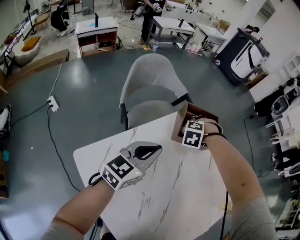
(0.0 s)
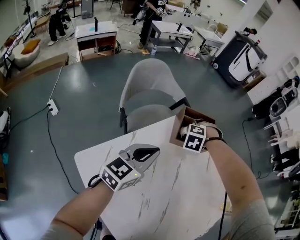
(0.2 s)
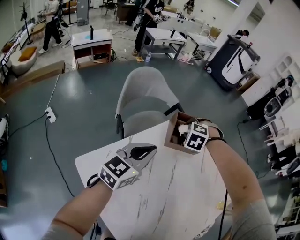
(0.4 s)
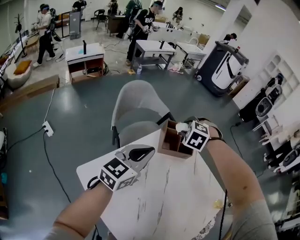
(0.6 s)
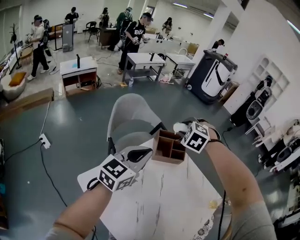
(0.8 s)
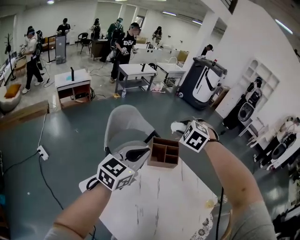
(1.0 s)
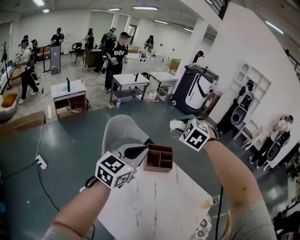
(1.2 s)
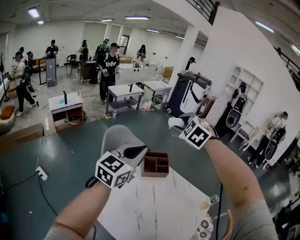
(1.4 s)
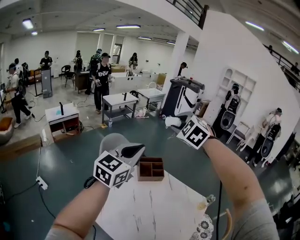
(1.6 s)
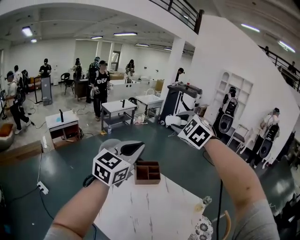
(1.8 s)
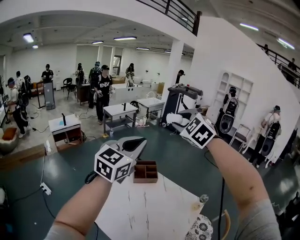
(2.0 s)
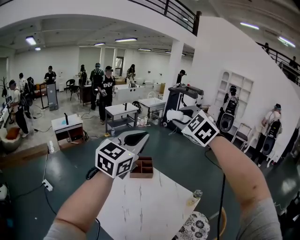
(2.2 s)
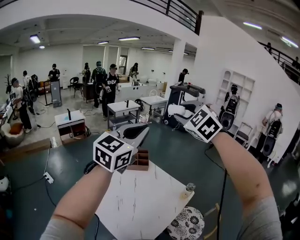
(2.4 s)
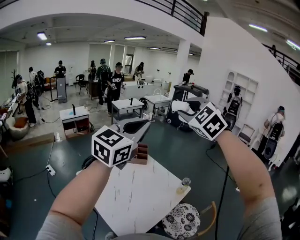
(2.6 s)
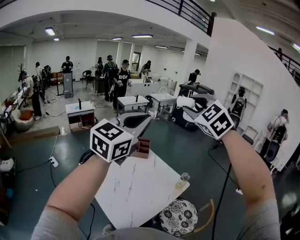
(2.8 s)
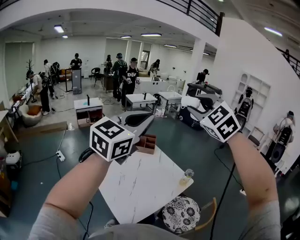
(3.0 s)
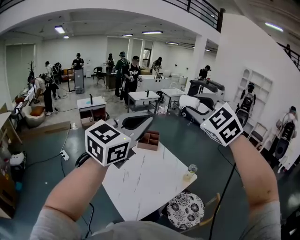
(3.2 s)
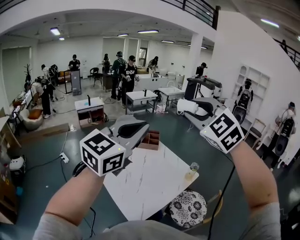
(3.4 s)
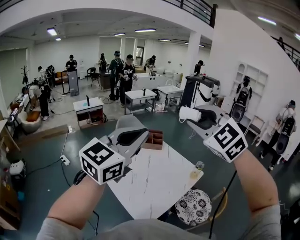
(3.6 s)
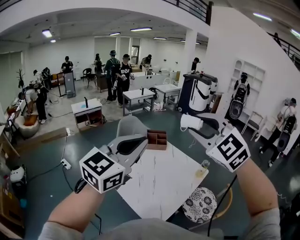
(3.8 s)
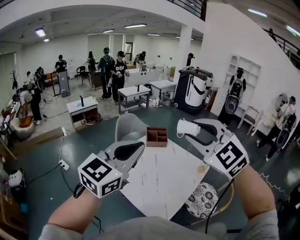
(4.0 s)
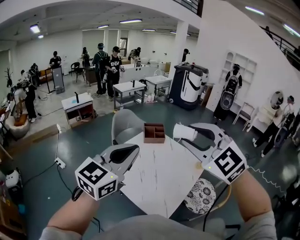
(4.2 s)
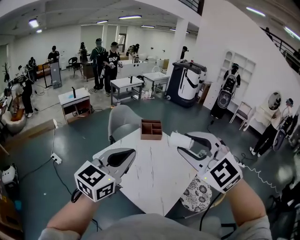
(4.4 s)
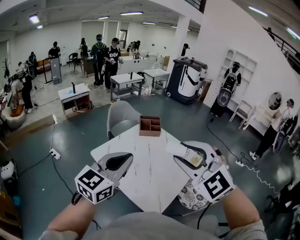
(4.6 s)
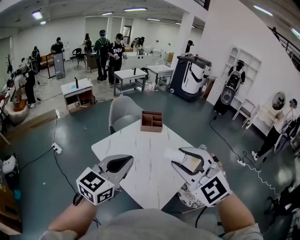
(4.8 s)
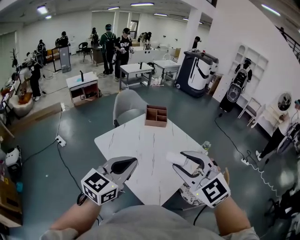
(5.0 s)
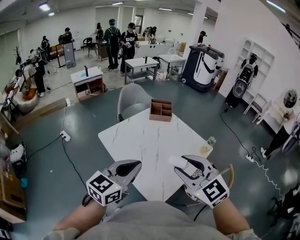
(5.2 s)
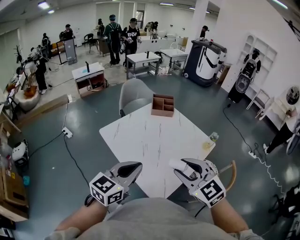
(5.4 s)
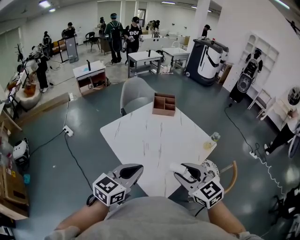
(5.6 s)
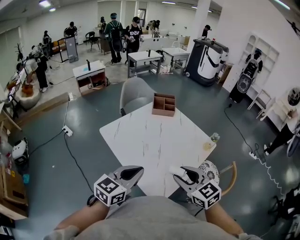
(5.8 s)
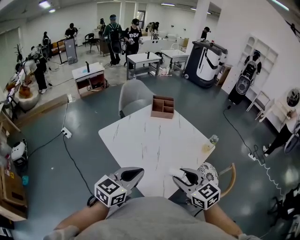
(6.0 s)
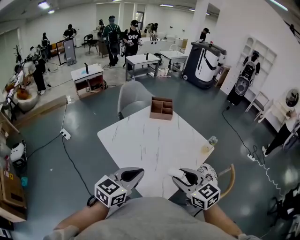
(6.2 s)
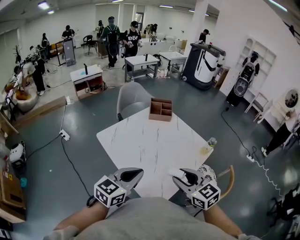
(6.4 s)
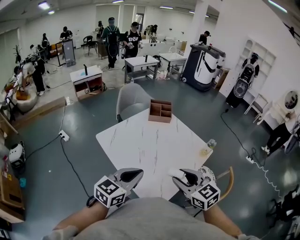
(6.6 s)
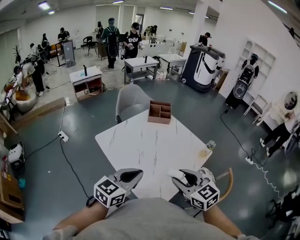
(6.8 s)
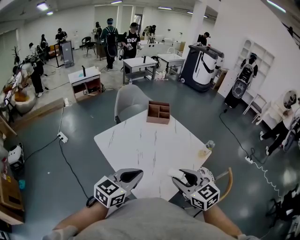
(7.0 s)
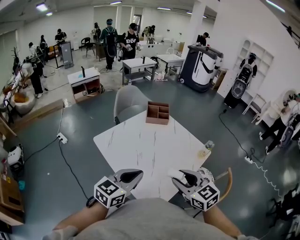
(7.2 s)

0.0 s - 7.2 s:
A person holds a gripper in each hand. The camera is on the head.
0.0 s - 1.4 s: The right gripper goes about 50 cm upward, and tips its fingers upward by some 40 degrees. The left gripper heads upward, covering some 30 cm, and changes its angle by about 20 degrees.
1.4 s - 2.8 s: The left gripper goes about 40 cm to the right, backward and upward. Meanwhile the right gripper heads backward, to the right and upward, covering roughly 40 cm, and swivels approximately 20 degrees.
2.8 s - 4.4 s: The left gripper heads to the left, downward and backward, covering approximately 25 cm, while the right gripper shifts roughly 30 cm backward, to the left and downward.
4.4 s - 5.8 s: The two grippers go about 25 cm downward. The right gripper swivels roughly 40 degrees.
5.8 s - 7.2 s: The grippers make only small movements.

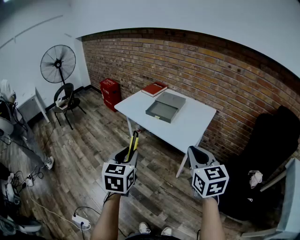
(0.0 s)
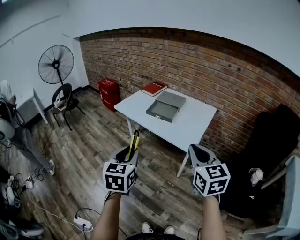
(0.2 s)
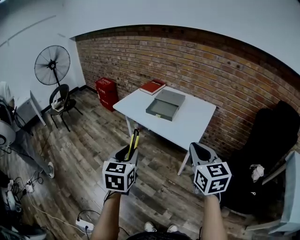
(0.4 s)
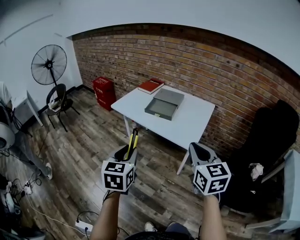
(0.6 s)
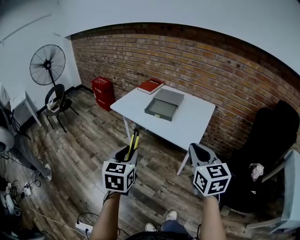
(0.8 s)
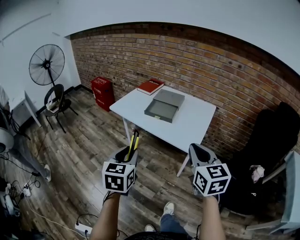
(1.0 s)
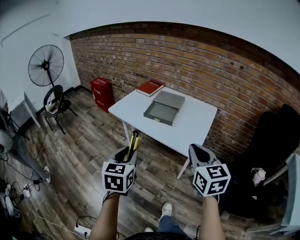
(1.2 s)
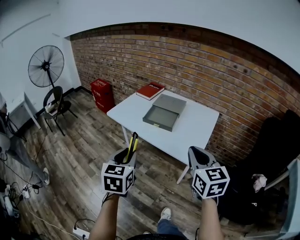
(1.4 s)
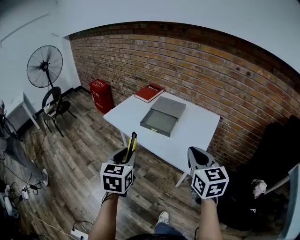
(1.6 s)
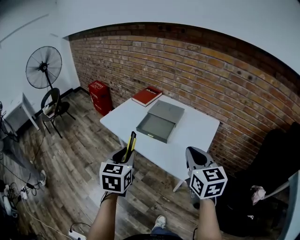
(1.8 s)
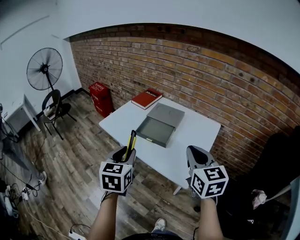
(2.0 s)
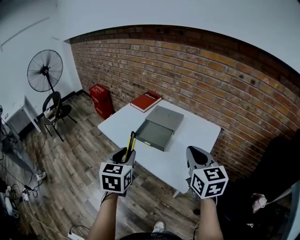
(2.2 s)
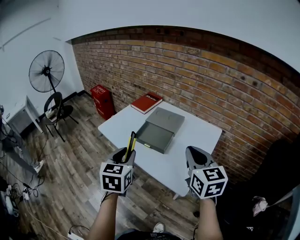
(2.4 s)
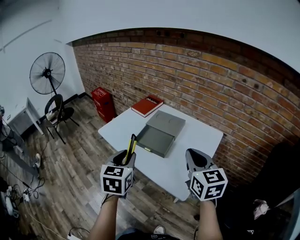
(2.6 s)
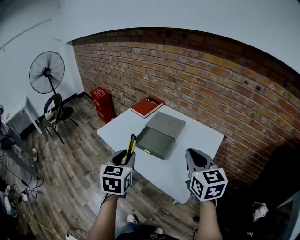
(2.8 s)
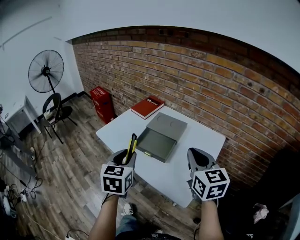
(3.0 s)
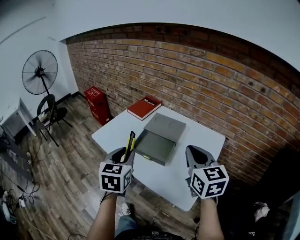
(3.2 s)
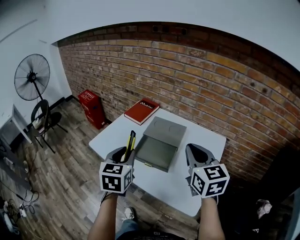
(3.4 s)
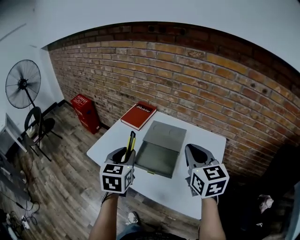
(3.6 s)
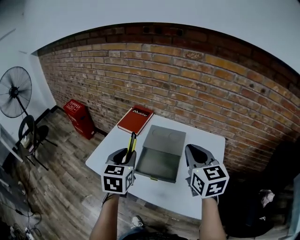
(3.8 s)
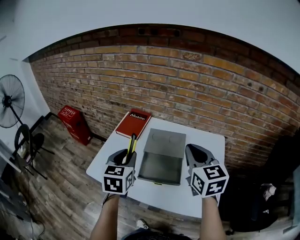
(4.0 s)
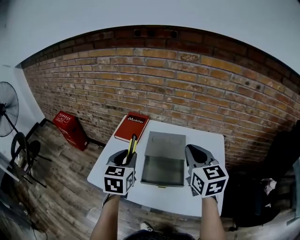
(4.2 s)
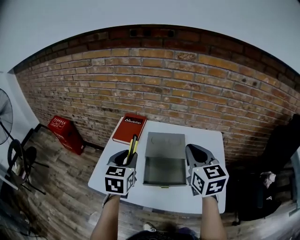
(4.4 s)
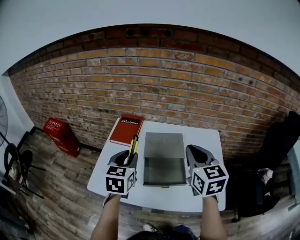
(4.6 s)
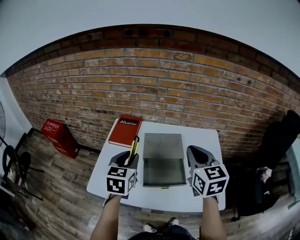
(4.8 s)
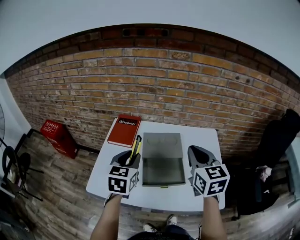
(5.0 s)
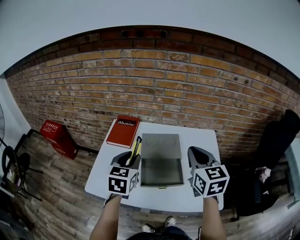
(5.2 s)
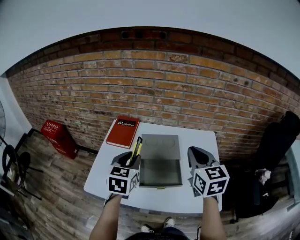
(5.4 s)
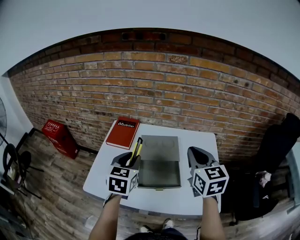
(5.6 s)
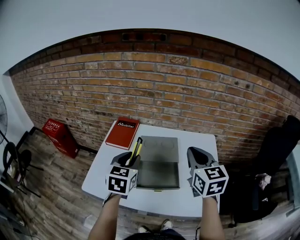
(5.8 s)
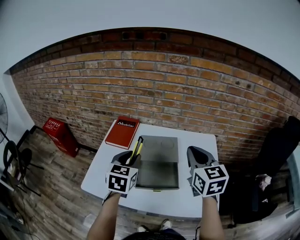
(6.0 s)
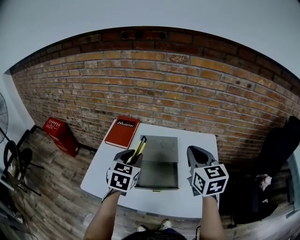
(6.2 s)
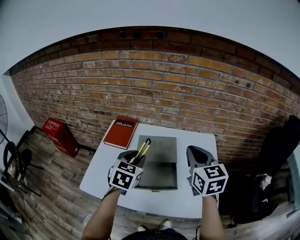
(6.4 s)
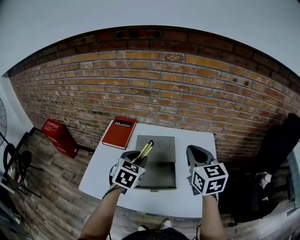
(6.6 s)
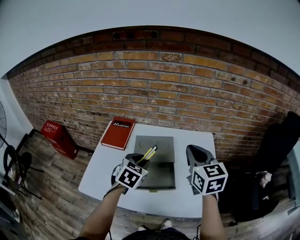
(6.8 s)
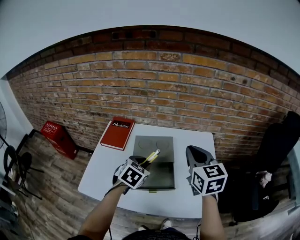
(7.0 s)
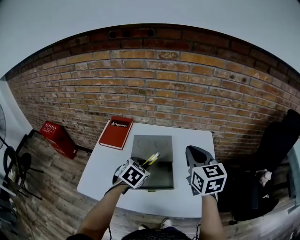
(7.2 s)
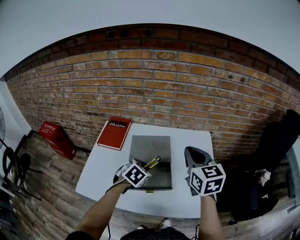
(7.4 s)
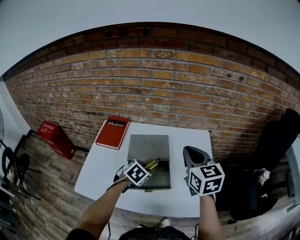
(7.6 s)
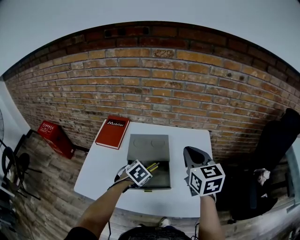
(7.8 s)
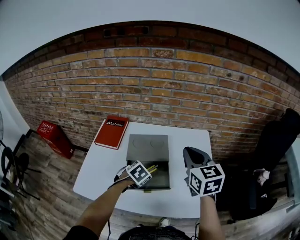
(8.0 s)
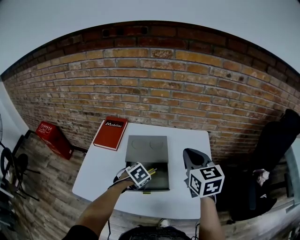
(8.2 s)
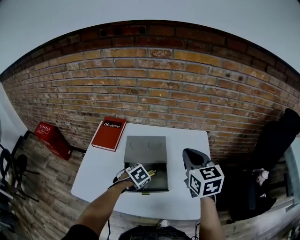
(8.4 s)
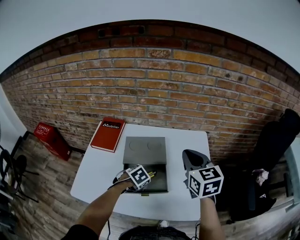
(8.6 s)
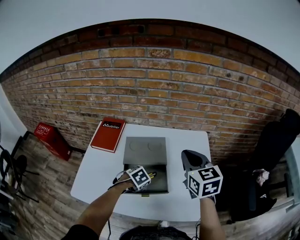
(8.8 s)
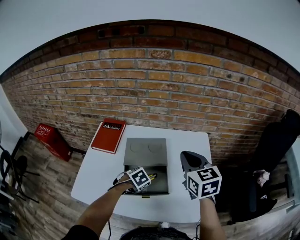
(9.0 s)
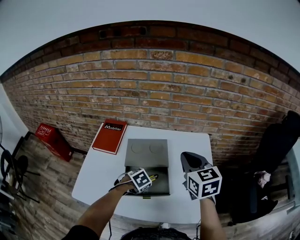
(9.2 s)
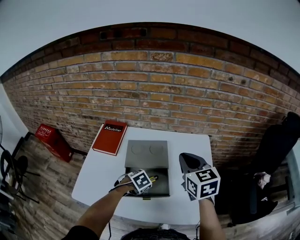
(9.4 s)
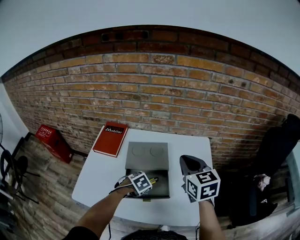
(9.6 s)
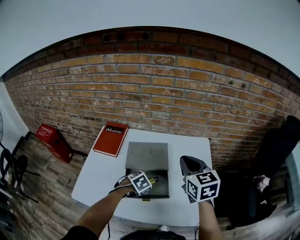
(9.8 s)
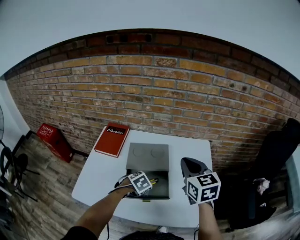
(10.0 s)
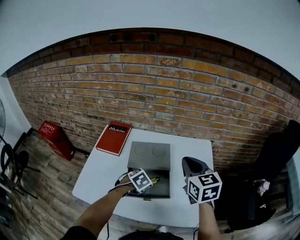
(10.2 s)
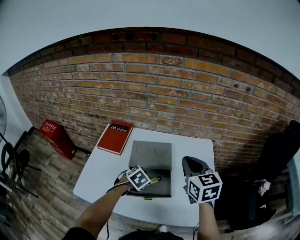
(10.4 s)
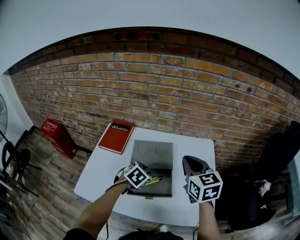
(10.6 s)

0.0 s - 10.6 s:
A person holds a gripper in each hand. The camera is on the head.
0.0 s - 1.6 s: Both grippers travel together forward, roughly 20 cm.
1.6 s - 3.0 s: Both grippers travel together forward, about 15 cm.
3.0 s - 4.6 s: The left gripper moves about 30 cm, and swivels approximately 30 degrees; the right gripper ends up about 20 cm from where it was, and turns by about 30 degrees.
4.6 s - 6.0 s: The left gripper is displaced to the right by some 5 cm.
6.0 s - 7.6 s: The left gripper moves downward and to the right, approximately 20 cm, and tips its fingers downward by some 30 degrees.
7.6 s - 9.0 s: The left gripper goes roughly 10 cm downward.
9.0 s - 10.6 s: The left gripper travels upward by about 10 cm, and rotates about 20 degrees.

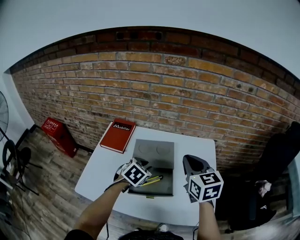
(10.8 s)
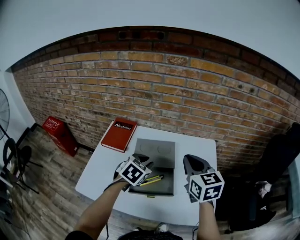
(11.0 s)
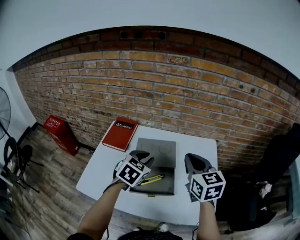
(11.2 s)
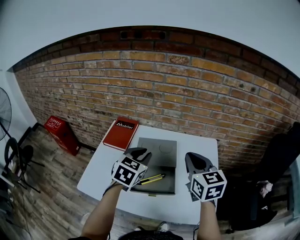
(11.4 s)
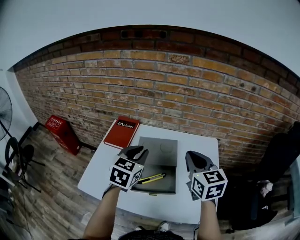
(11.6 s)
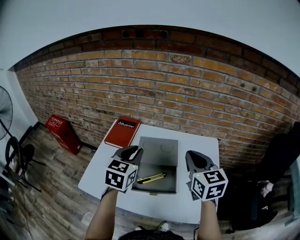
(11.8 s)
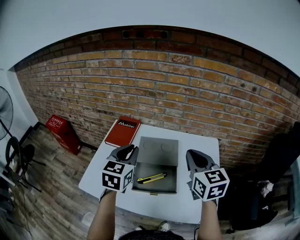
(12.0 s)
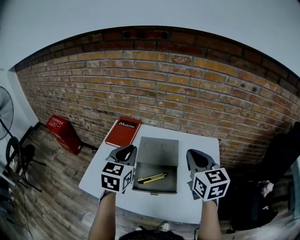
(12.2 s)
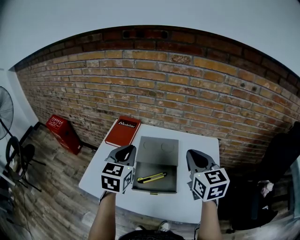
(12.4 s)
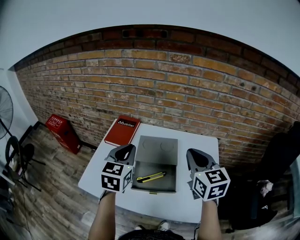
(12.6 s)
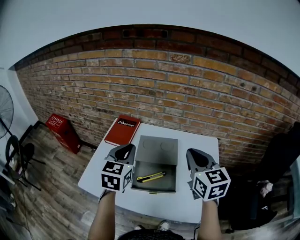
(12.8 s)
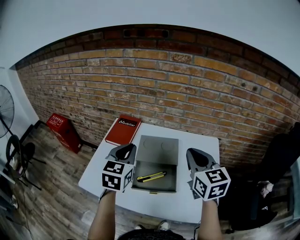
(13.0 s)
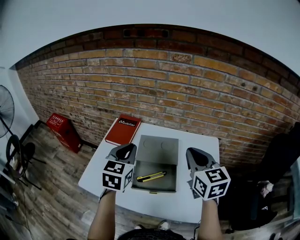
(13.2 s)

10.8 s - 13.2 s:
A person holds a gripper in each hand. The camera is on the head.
10.8 s - 12.0 s: The left gripper shifts some 15 cm upward and to the left, and tips its fingers upward by roughly 30 degrees.
12.0 s - 13.2 s: The two grippers keep their place.

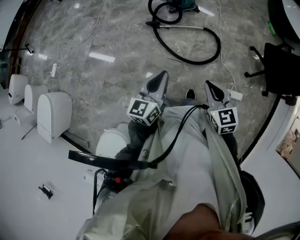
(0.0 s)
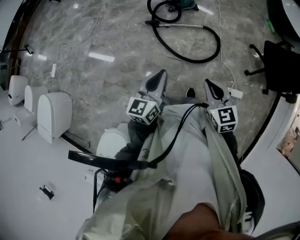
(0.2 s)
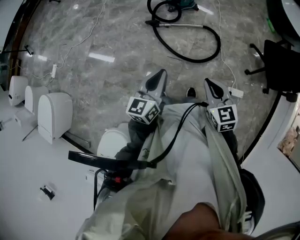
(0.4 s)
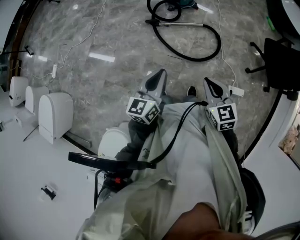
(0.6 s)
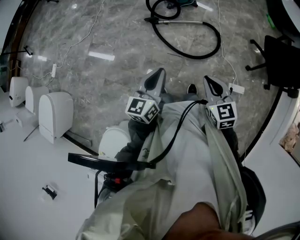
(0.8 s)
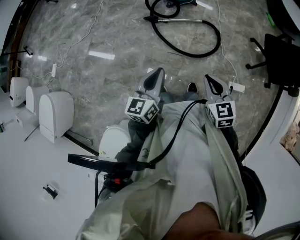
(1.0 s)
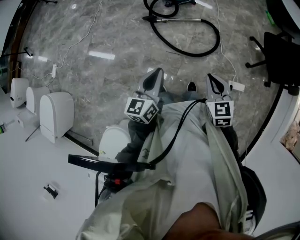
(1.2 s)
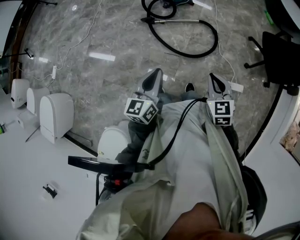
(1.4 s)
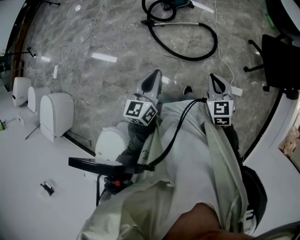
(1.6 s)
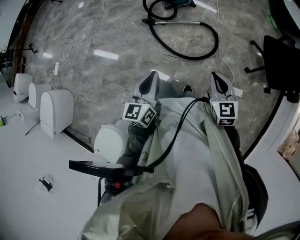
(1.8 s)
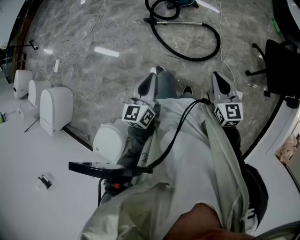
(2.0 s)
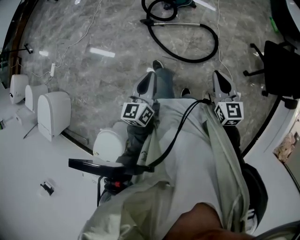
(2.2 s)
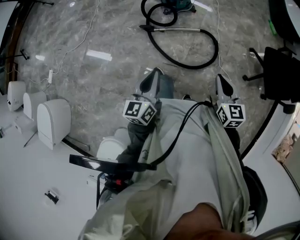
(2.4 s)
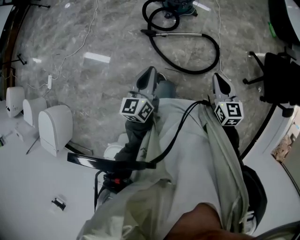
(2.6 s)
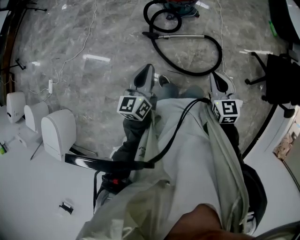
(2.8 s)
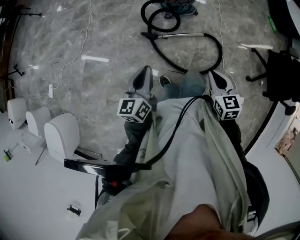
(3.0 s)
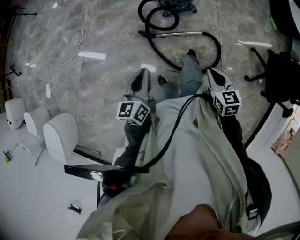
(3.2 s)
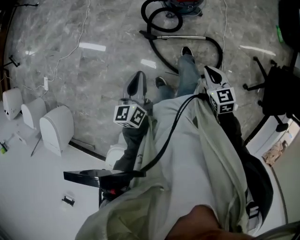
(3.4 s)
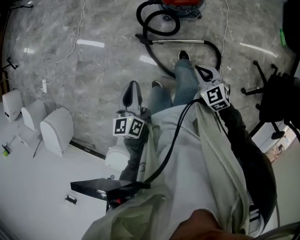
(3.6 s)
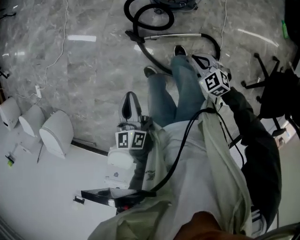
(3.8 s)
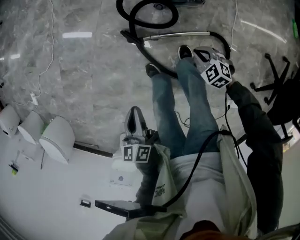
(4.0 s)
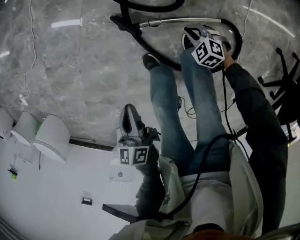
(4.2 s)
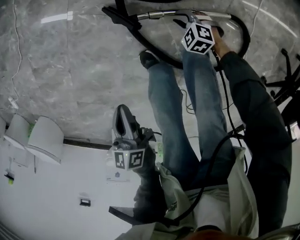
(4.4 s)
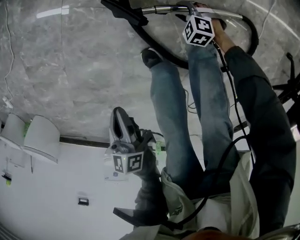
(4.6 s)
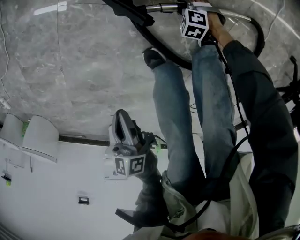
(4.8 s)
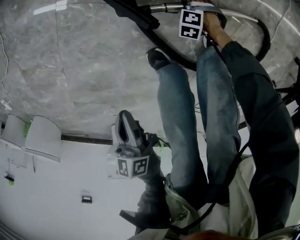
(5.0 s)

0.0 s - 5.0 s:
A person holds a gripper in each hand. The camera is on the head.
0.0 s - 1.6 s: The right gripper heads to the right, covering roughly 10 cm. The left gripper goes about 5 cm to the right.
1.6 s - 3.4 s: Both grippers are carried forward, some 40 cm.
3.4 s - 5.0 s: The right gripper heads downward, covering roughly 80 cm, points its fingers roughly 40 degrees further downward, and opens up. The left gripper travels downward by some 50 cm, and swivels about 30 degrees.
